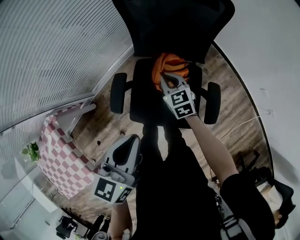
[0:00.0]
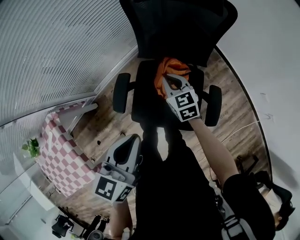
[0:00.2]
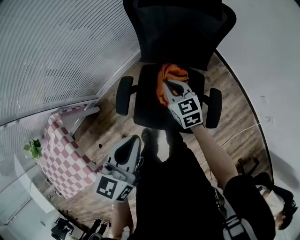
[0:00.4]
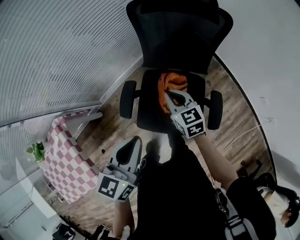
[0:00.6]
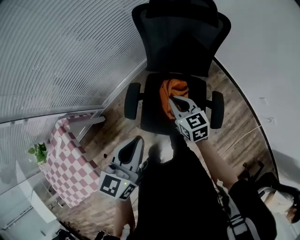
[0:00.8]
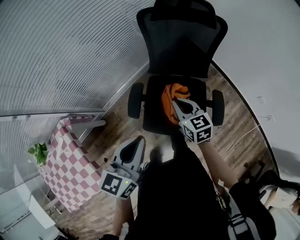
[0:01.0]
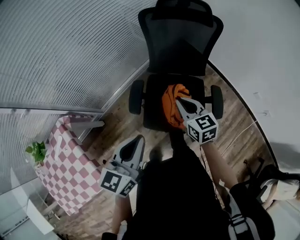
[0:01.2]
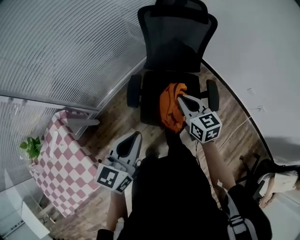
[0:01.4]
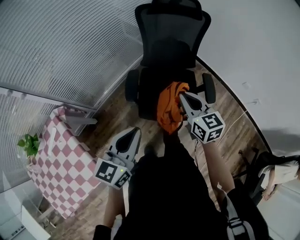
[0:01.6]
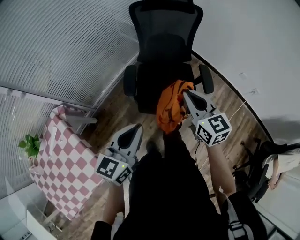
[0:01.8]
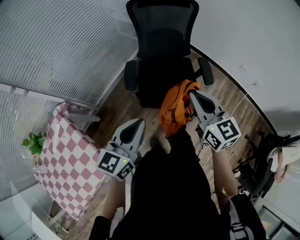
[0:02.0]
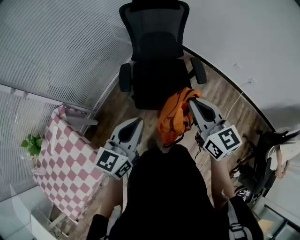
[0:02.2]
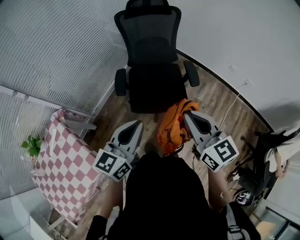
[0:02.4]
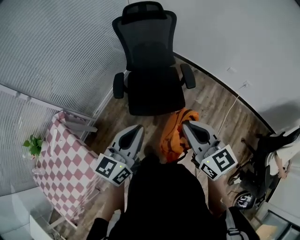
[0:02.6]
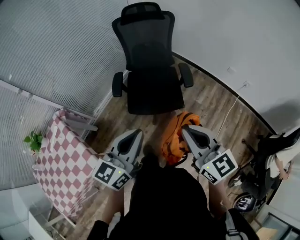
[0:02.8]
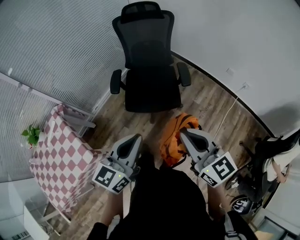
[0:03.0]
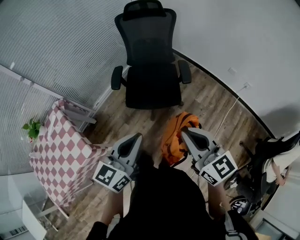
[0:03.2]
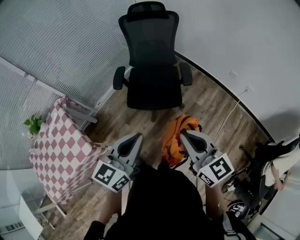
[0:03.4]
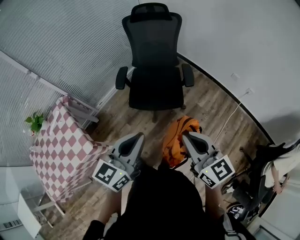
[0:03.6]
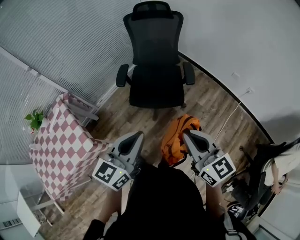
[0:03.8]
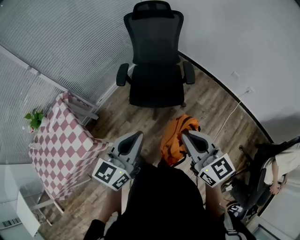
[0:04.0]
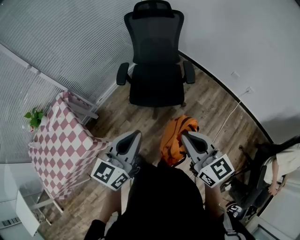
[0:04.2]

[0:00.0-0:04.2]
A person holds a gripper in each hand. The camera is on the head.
0:00.0 to 0:01.4: The left gripper shifts approximately 20 cm backward and to the left. Meanwhile the right gripper shifts about 30 cm backward and upward.
0:01.4 to 0:02.8: The left gripper heads backward and to the right, covering about 25 cm; the right gripper heads backward, upward and to the right, covering approximately 40 cm.
0:02.8 to 0:04.2: Both grippers move backward, approximately 10 cm.

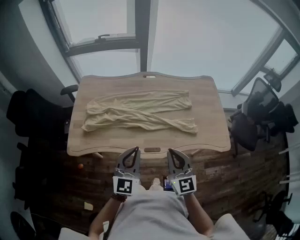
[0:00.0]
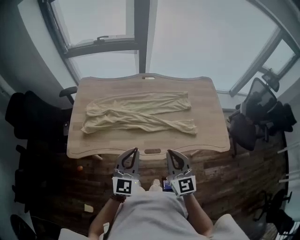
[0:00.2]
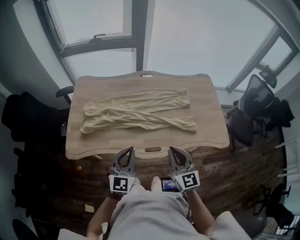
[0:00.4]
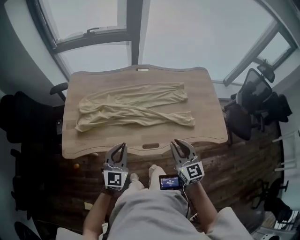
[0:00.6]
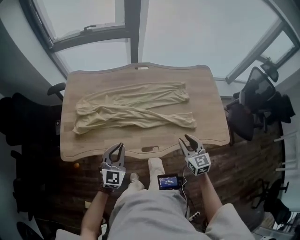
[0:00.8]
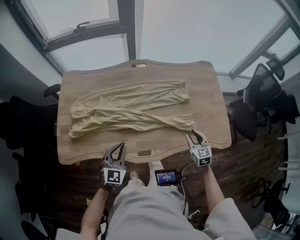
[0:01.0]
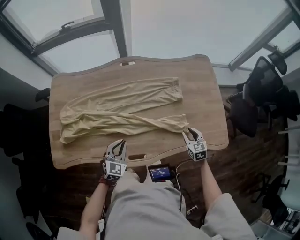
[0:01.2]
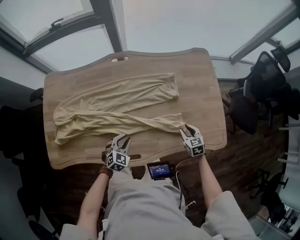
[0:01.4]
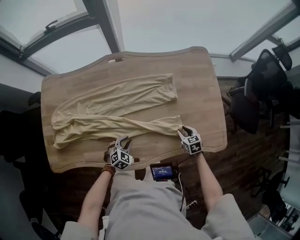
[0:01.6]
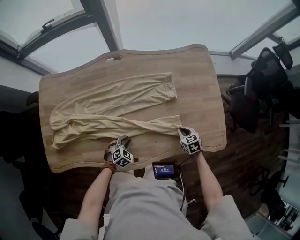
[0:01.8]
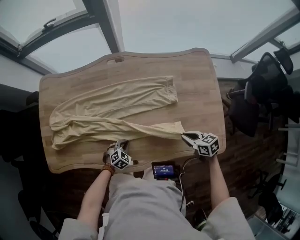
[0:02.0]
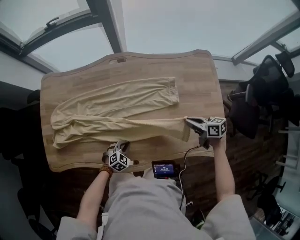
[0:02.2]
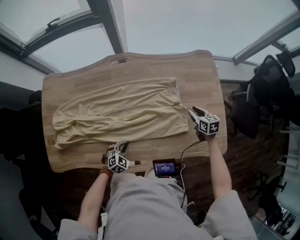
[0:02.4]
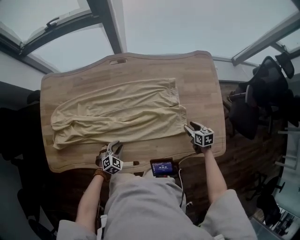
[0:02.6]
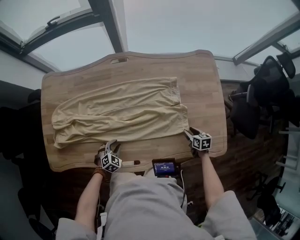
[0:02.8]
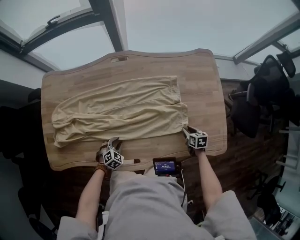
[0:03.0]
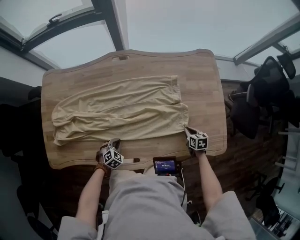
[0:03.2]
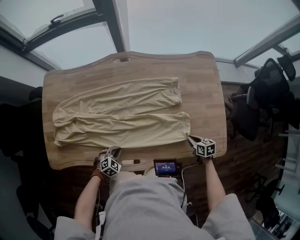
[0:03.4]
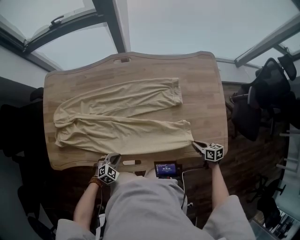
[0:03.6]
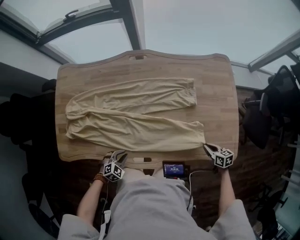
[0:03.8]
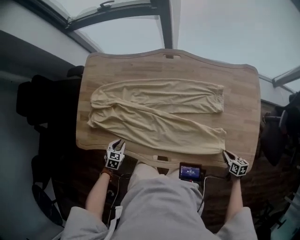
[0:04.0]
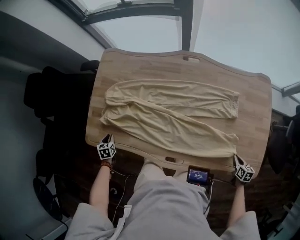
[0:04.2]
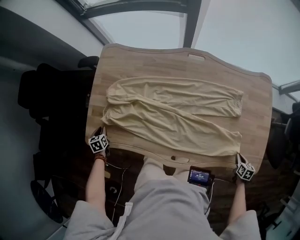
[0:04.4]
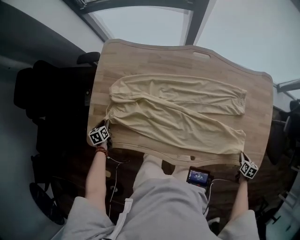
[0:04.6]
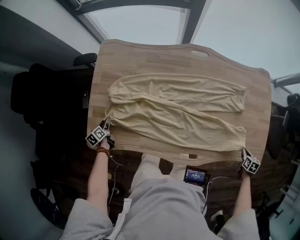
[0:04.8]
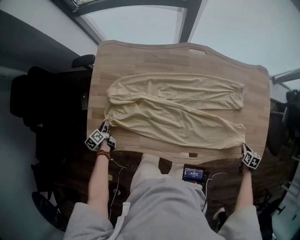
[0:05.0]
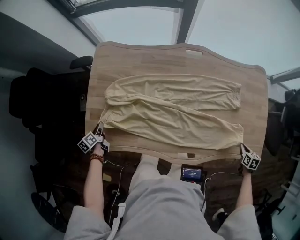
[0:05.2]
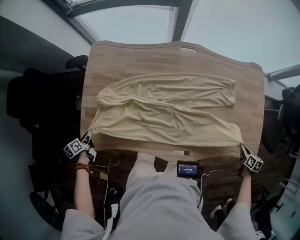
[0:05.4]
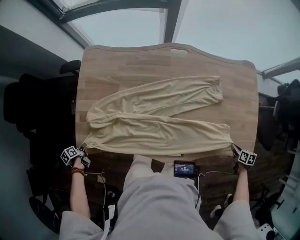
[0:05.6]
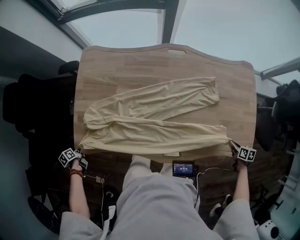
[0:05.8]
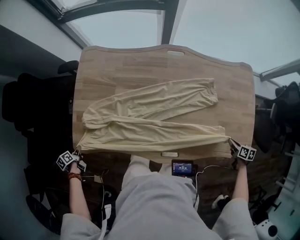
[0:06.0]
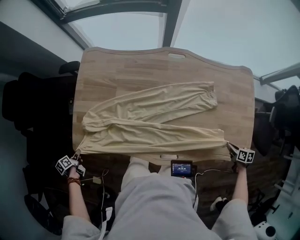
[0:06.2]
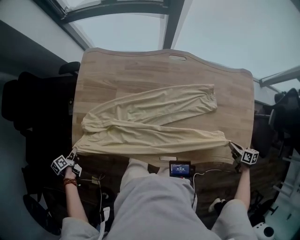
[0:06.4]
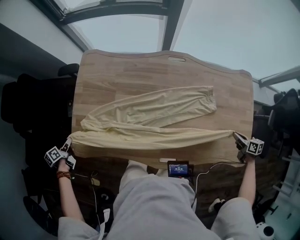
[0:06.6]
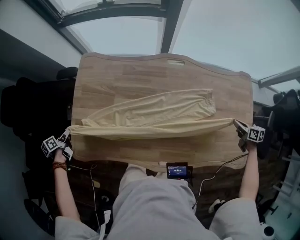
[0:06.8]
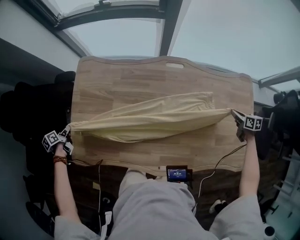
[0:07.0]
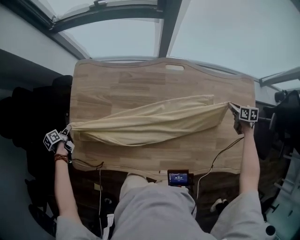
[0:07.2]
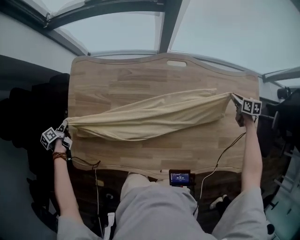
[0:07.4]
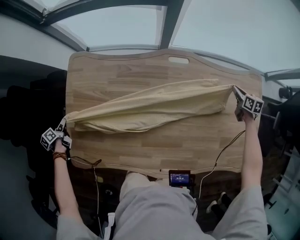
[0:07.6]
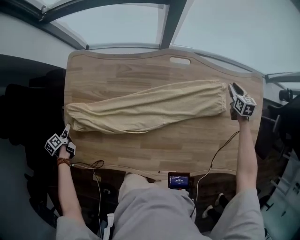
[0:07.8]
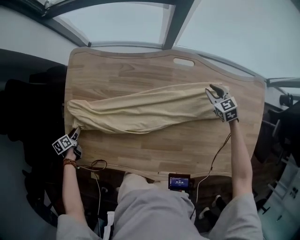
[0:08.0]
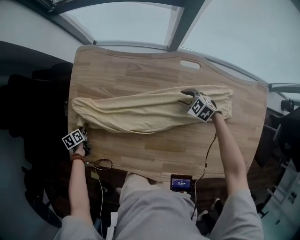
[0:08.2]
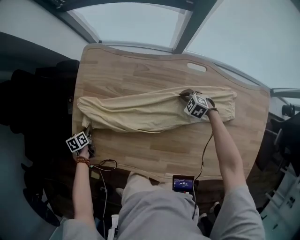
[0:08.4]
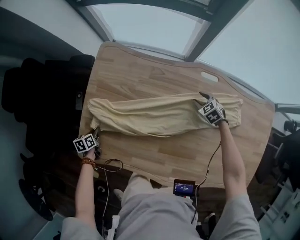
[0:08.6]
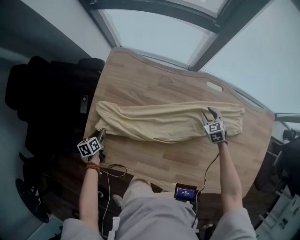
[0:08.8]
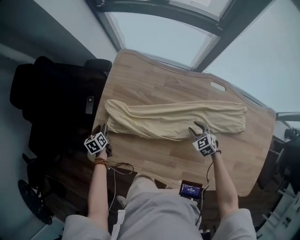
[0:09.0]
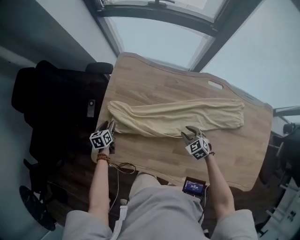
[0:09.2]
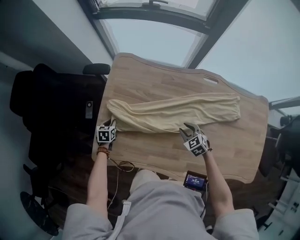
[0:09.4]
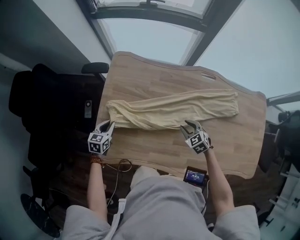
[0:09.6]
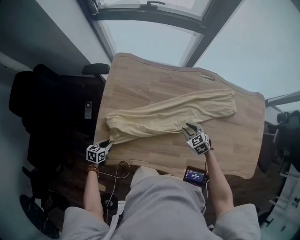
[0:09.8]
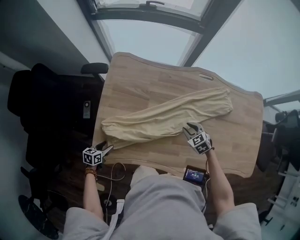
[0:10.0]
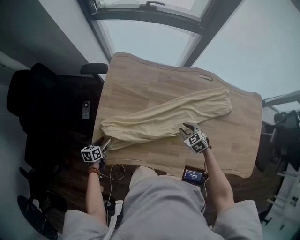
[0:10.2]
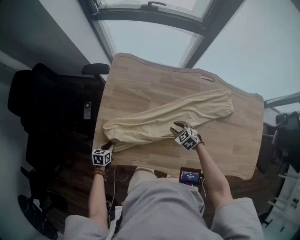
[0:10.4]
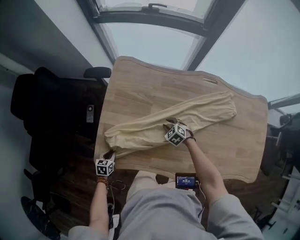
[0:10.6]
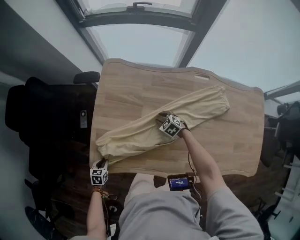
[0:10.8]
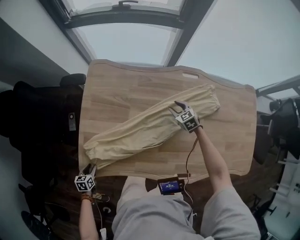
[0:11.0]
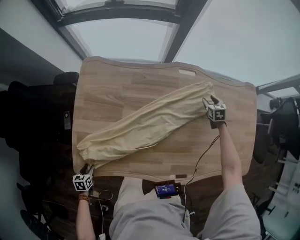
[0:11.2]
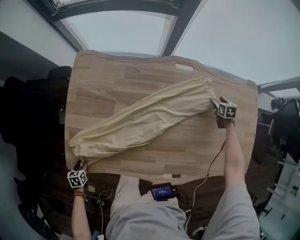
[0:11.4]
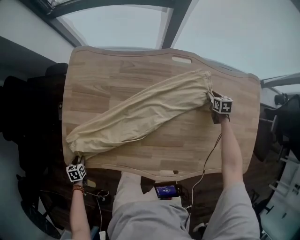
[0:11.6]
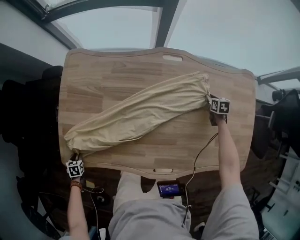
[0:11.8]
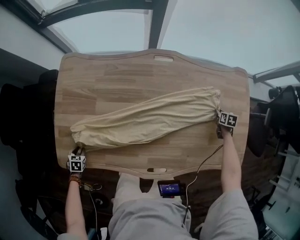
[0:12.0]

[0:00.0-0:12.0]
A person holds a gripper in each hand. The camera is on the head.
0:00.0 to 0:01.6: The right gripper moves downward, to the right and forward, roughly 50 cm, points its fingers approximately 50 degrees further downward, and opens. The left gripper goes some 40 cm downward and forward, tilts its fingers about 50 degrees downward, and opens its fingers.
0:01.6 to 0:03.0: The left gripper goes roughly 5 cm to the left, and closes and opens again. Meanwhile the right gripper reaches approximately 10 cm upward, then returns, and closes, then reopens.
0:03.0 to 0:04.4: The right gripper shifts by approximately 10 cm, and closes up, while the left gripper shifts by some 50 cm, and rotates around the line of its fingers by roughly 70 degrees, counterclockwise from behind.
0:04.4 to 0:06.0: The right gripper moves roughly 5 cm. Meanwhile the left gripper is displaced backward and to the left by roughly 10 cm, and turns by some 40 degrees.
0:06.0 to 0:07.6: Both grippers move forward, some 35 cm.
0:07.6 to 0:09.0: The right gripper changes place by approximately 50 cm, rolls counterclockwise, seen from behind, by about 60 degrees, and opens; the left gripper turns by approximately 20 degrees, and opens its fingers.
0:09.0 to 0:10.4: The left gripper moves some 15 cm, swivels some 40 degrees, and closes up. Meanwhile the right gripper shifts by approximately 15 cm.
0:10.4 to 0:12.0: The right gripper moves up and down over some 5 cm, changing direction 2 times, twists some 60 degrees clockwise, seen from behind, and opens, then closes again. The left gripper ends up roughly 10 cm from where it was, and swivels some 30 degrees.

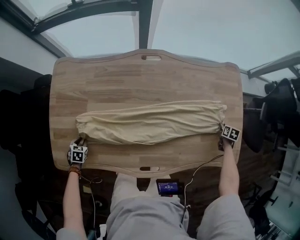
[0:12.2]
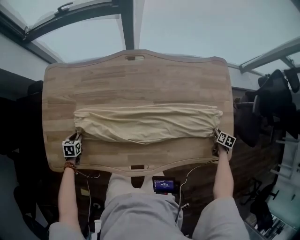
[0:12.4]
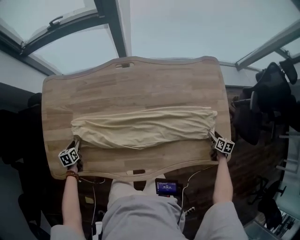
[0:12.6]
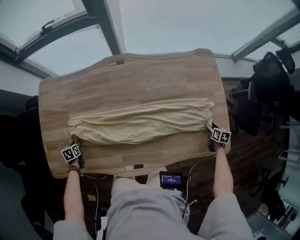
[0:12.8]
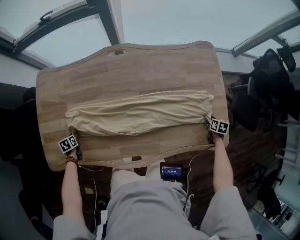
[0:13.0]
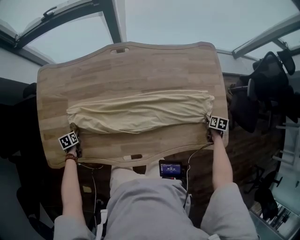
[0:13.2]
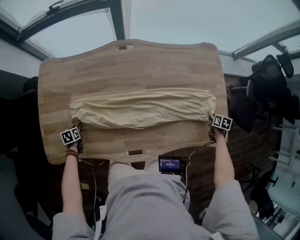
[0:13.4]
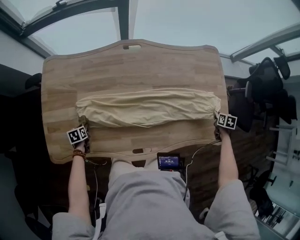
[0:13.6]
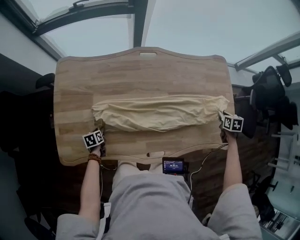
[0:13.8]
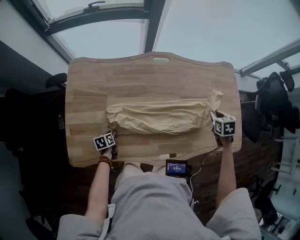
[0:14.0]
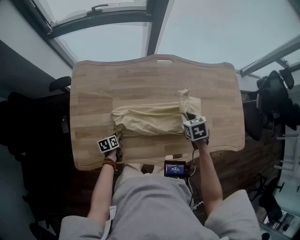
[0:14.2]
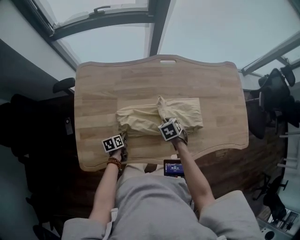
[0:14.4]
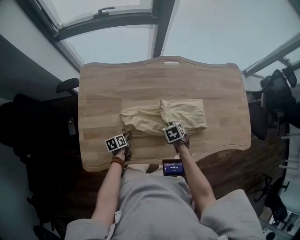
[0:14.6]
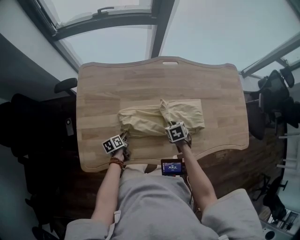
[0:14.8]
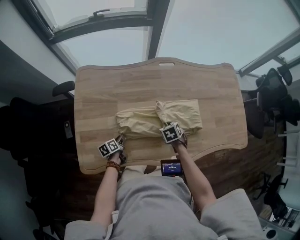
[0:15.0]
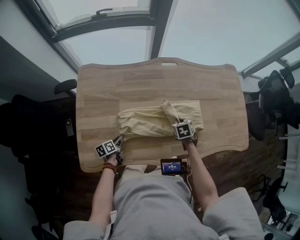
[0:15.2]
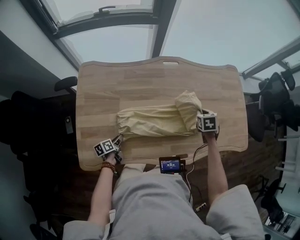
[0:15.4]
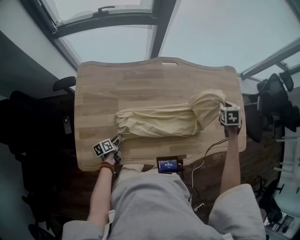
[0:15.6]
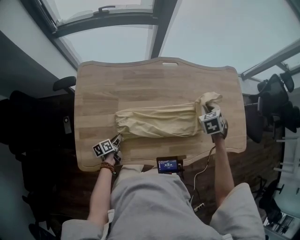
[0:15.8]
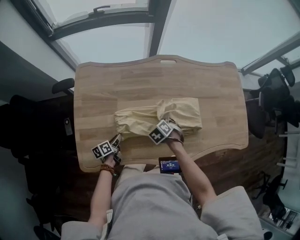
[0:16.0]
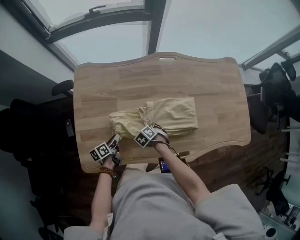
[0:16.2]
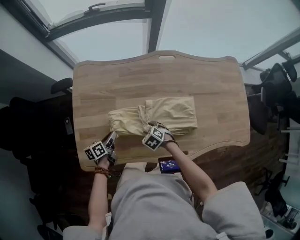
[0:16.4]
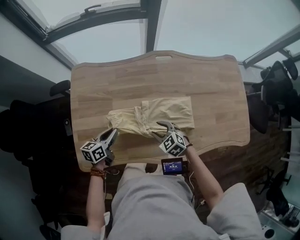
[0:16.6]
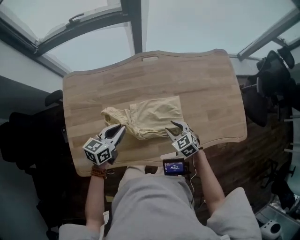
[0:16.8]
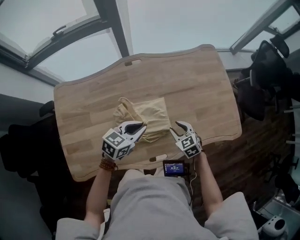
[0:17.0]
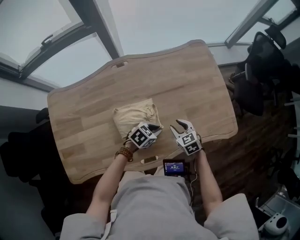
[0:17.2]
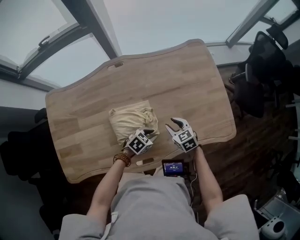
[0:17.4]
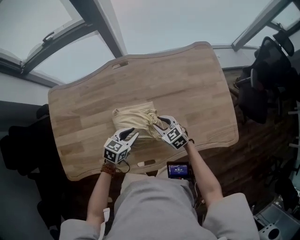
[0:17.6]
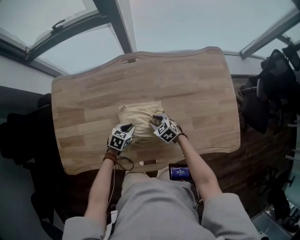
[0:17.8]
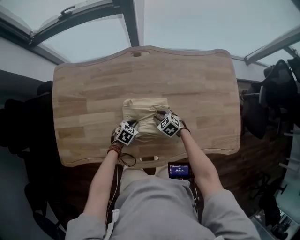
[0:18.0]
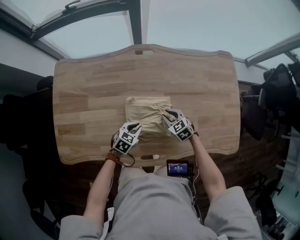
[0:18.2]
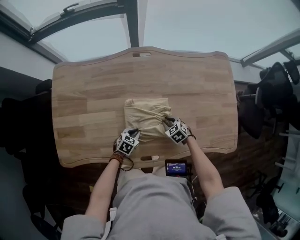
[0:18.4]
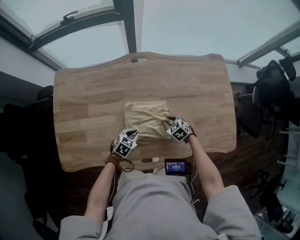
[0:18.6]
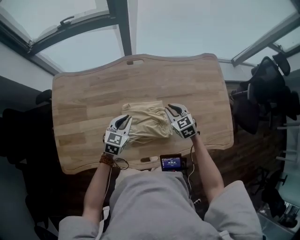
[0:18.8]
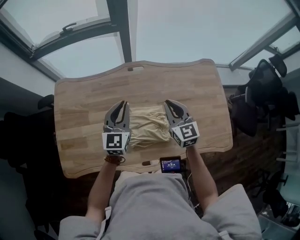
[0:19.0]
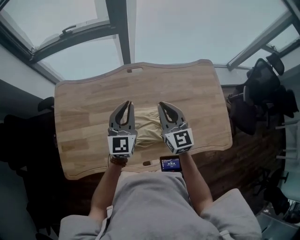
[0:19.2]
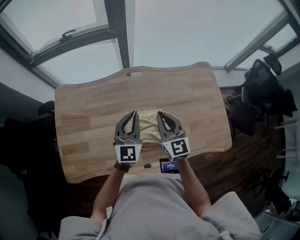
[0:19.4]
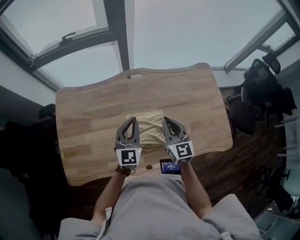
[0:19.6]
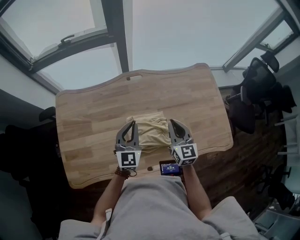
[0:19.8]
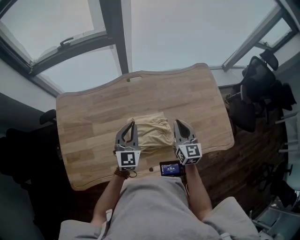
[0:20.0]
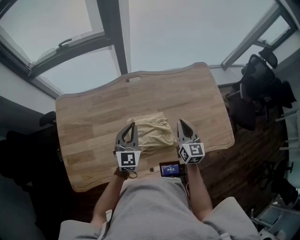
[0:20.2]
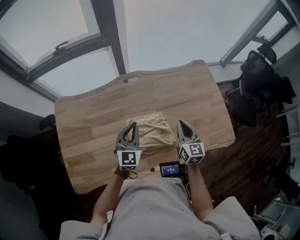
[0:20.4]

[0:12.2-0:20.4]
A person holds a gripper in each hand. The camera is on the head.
0:12.2 to 0:13.8: The right gripper goes some 20 cm upward and to the left, and opens, then closes once more. Meanwhile the left gripper shifts about 5 cm to the right, and swivels approximately 40 degrees.
0:13.8 to 0:15.4: The left gripper changes its angle by some 30 degrees; the right gripper moves to the left, about 30 cm.
0:15.4 to 0:17.2: The right gripper swings up and down, approximately 25 cm each way, with 2 reversals, changes its angle by some 20 degrees, and opens up. Meanwhile the left gripper moves approximately 50 cm, and rolls clockwise, seen from behind, by roughly 80 degrees.
0:17.2 to 0:18.8: The left gripper goes up and down, about 20 cm each way, reversing 5 times, and swivels approximately 50 degrees, while the right gripper swings up and down, about 15 cm each way, with 3 reversals.
0:18.8 to 0:20.4: The left gripper heads upward, covering approximately 10 cm, and changes its angle by approximately 20 degrees, while the right gripper shifts approximately 15 cm upward and backward, and rotates roughly 40 degrees.
